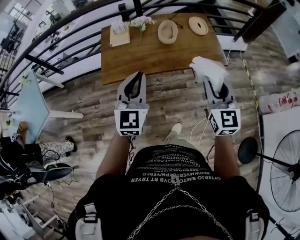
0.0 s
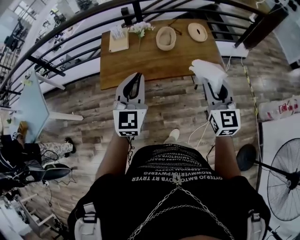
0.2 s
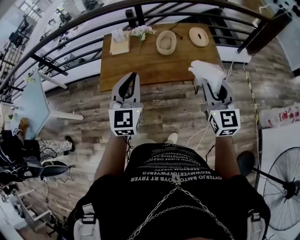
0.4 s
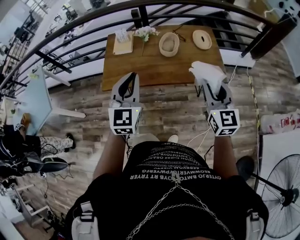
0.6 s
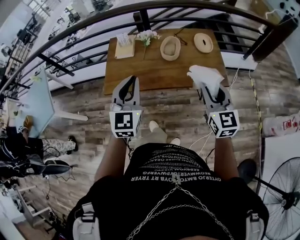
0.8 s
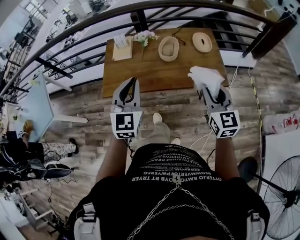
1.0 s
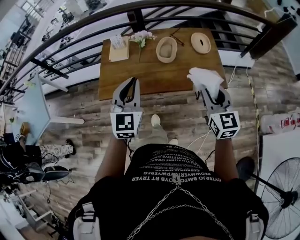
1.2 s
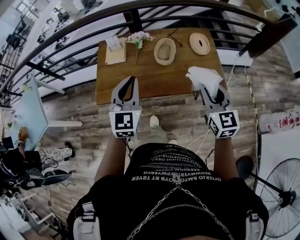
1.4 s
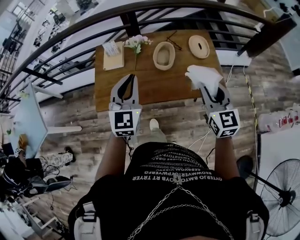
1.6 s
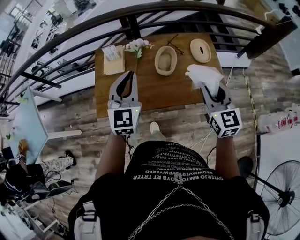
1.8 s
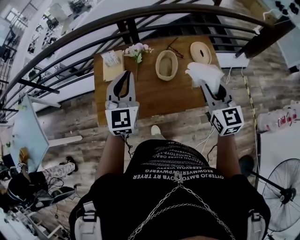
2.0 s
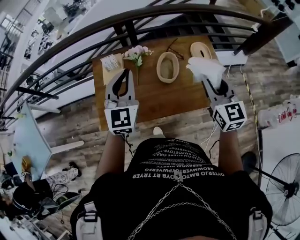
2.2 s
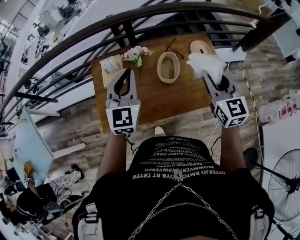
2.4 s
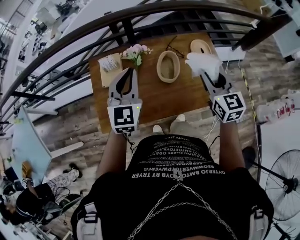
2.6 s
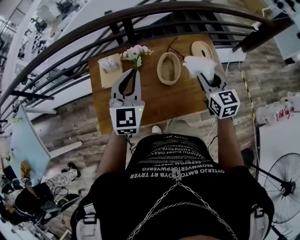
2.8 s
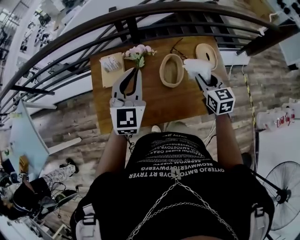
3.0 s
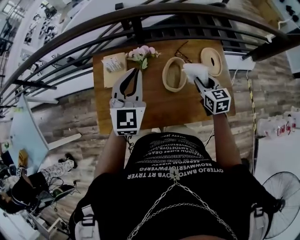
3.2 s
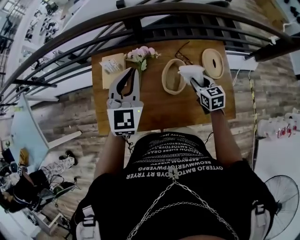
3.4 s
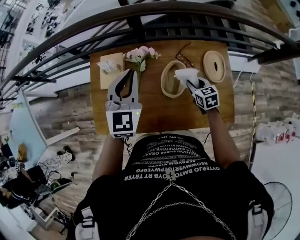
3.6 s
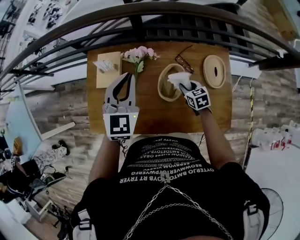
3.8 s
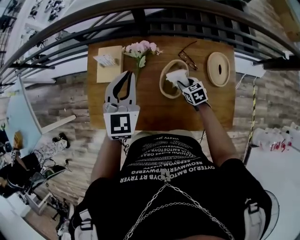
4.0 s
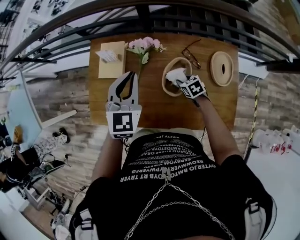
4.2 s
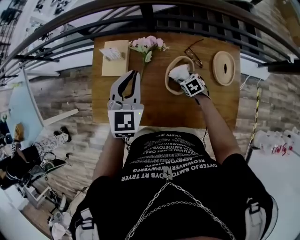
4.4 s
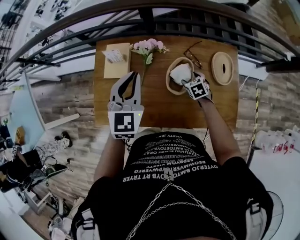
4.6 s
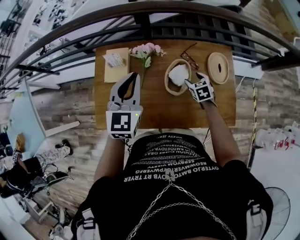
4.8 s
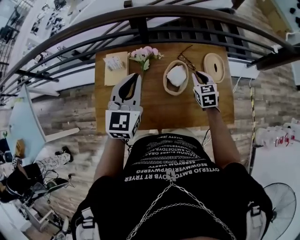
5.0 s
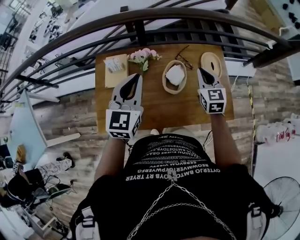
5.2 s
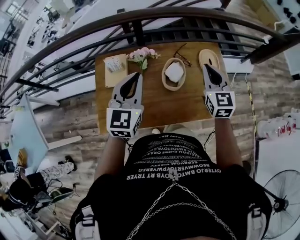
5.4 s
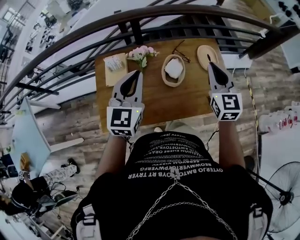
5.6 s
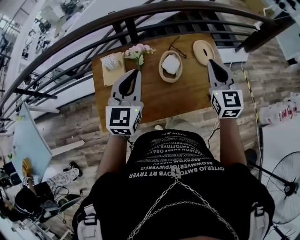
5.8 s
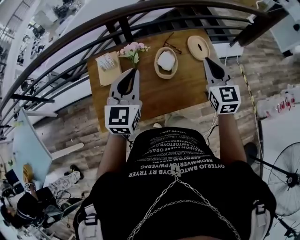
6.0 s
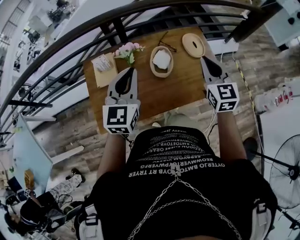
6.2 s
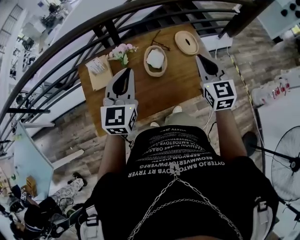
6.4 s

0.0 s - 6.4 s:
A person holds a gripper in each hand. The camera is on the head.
0.0 s - 1.6 s: Both grippers travel together forward, roughly 20 cm.
1.6 s - 3.2 s: The left gripper shifts some 20 cm forward. Meanwhile the right gripper moves forward and downward, about 30 cm, and changes its angle by approximately 20 degrees.
3.2 s - 4.8 s: The right gripper moves downward and forward, about 15 cm, changes its angle by about 20 degrees, and opens.
4.8 s - 6.4 s: The left gripper heads backward, covering approximately 10 cm, while the right gripper travels upward and backward by some 35 cm, tilts its fingers approximately 40 degrees upward, and closes.

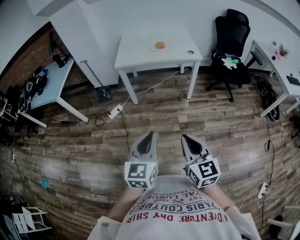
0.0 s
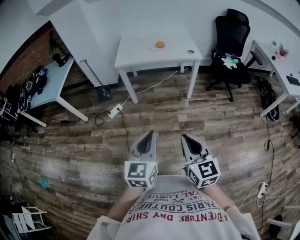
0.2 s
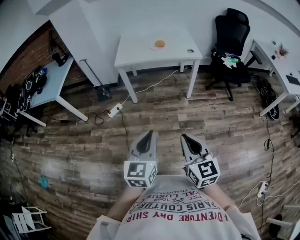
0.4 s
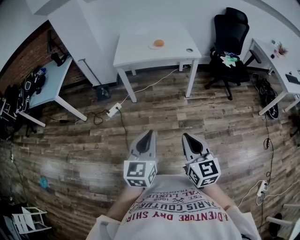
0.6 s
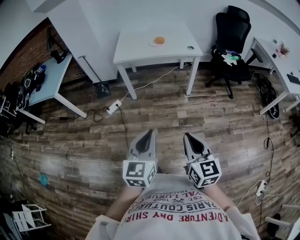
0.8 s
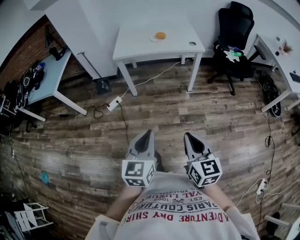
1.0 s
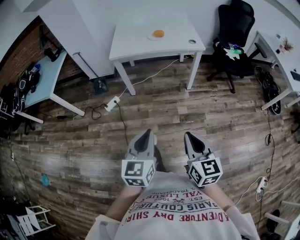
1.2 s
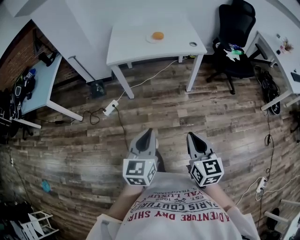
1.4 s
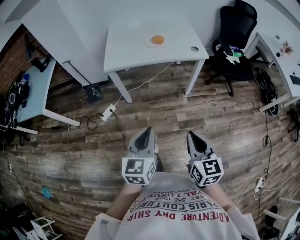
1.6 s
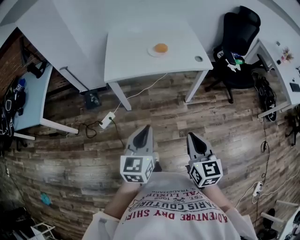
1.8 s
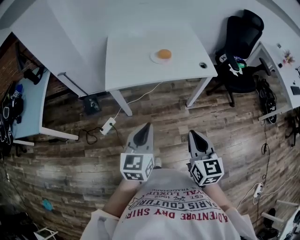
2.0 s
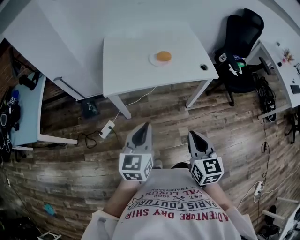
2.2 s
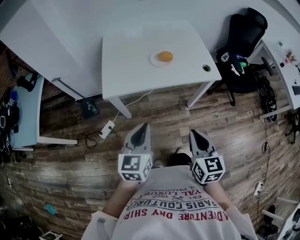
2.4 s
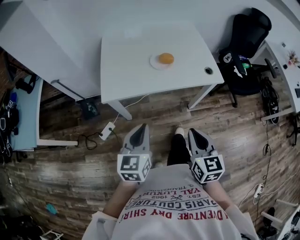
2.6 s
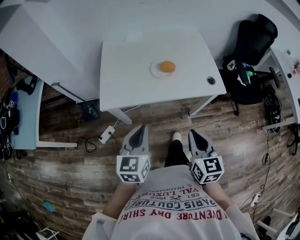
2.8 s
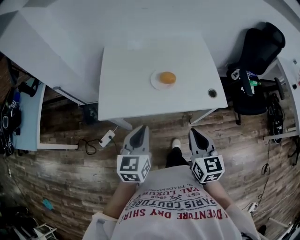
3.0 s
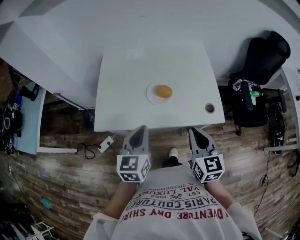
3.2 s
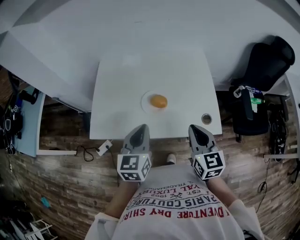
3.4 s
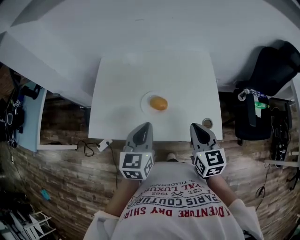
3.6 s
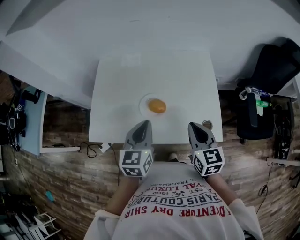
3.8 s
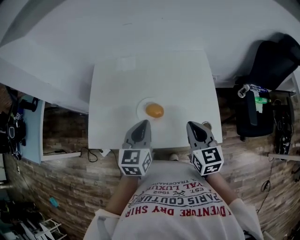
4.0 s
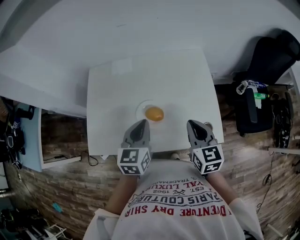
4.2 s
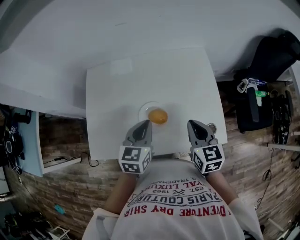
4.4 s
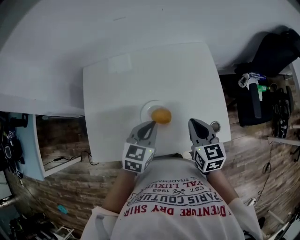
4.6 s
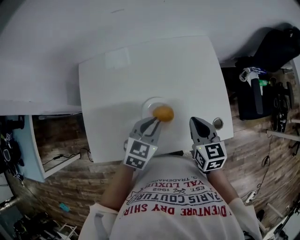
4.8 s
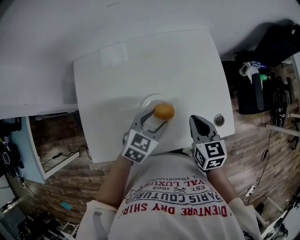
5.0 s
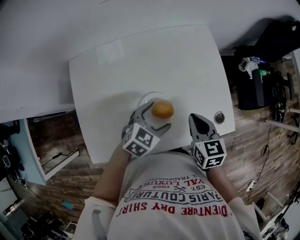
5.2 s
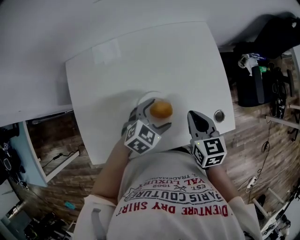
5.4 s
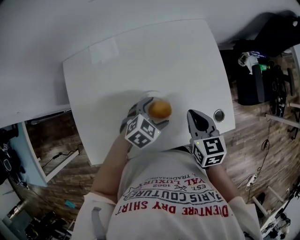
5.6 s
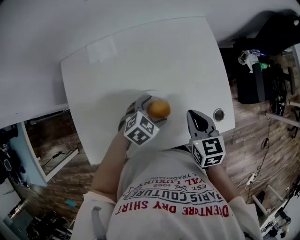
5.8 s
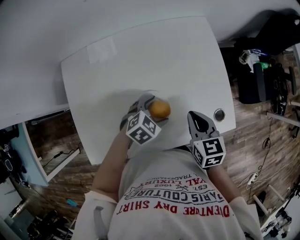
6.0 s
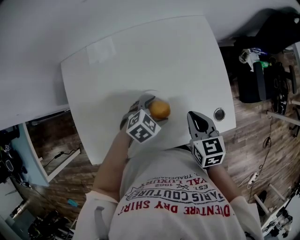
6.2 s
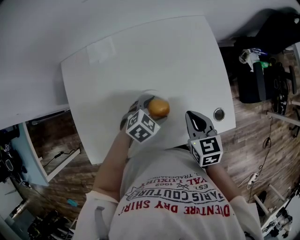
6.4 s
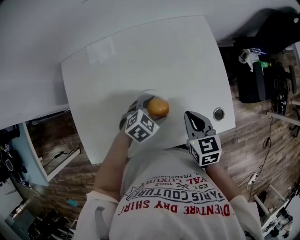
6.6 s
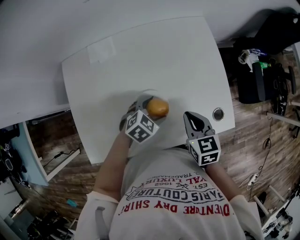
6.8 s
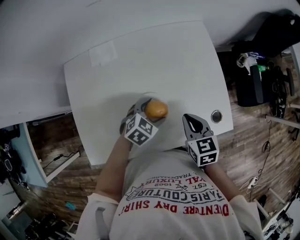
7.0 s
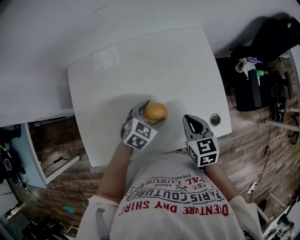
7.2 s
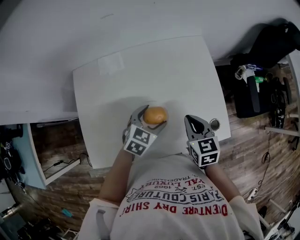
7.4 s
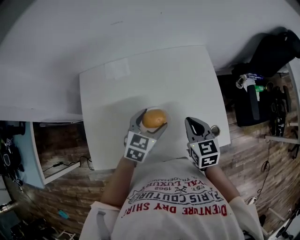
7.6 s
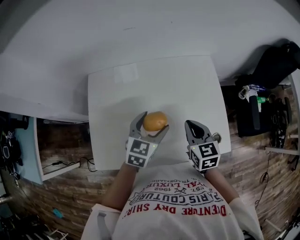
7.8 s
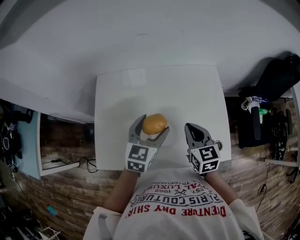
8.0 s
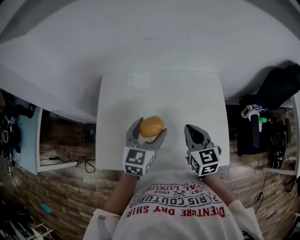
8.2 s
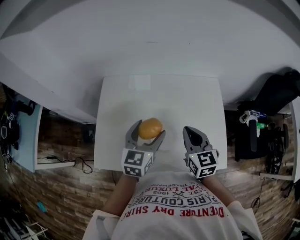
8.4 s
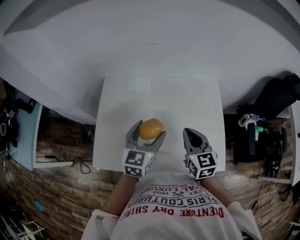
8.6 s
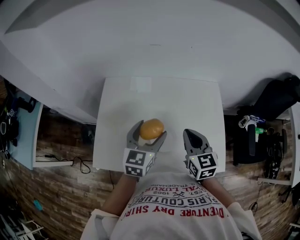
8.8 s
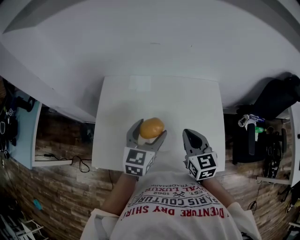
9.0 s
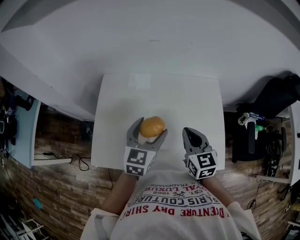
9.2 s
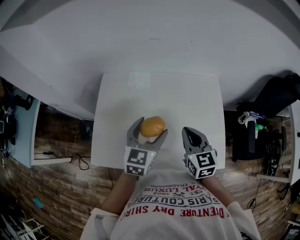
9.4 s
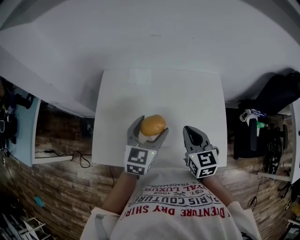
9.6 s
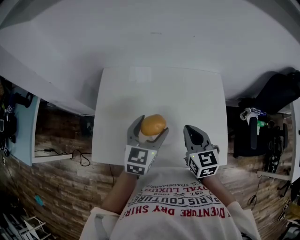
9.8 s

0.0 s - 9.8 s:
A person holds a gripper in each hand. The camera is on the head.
0.0 s - 1.4 s: Both grippers travel together forward, some 15 cm.
1.4 s - 2.8 s: Both grippers are carried forward, about 40 cm.
2.8 s - 4.2 s: The grippers both shift forward and to the right by some 35 cm.
4.2 s - 5.6 s: The right gripper heads downward, covering approximately 10 cm. The left gripper is displaced downward by approximately 15 cm, changes its angle by roughly 60 degrees, and opens up.
5.6 s - 7.0 s: There are only small adjustments of the grippers.
7.0 s - 8.4 s: The left gripper is displaced upward by about 20 cm, and points its fingers roughly 30 degrees further upward; the right gripper moves upward, approximately 15 cm, and turns by about 20 degrees.
8.4 s - 9.8 s: The grippers make only small movements.

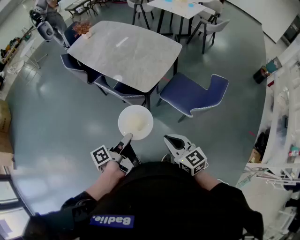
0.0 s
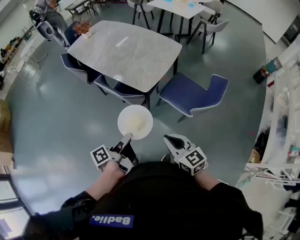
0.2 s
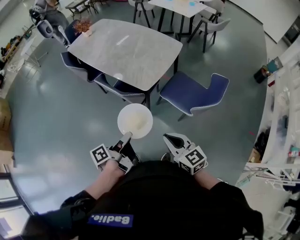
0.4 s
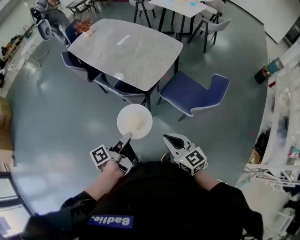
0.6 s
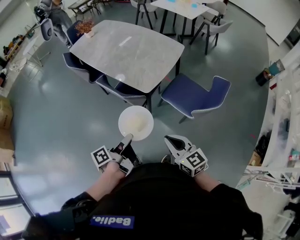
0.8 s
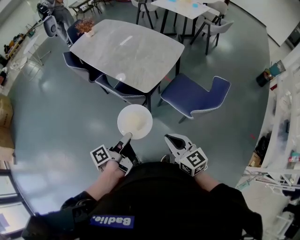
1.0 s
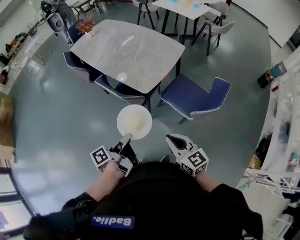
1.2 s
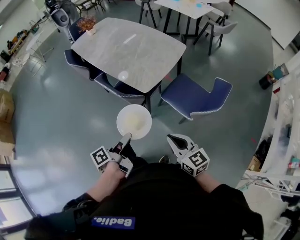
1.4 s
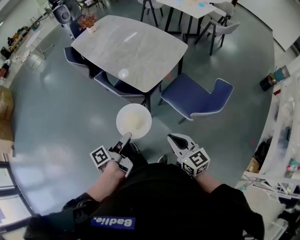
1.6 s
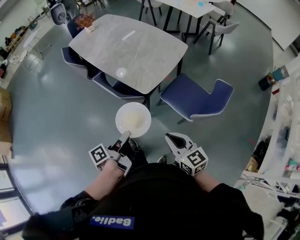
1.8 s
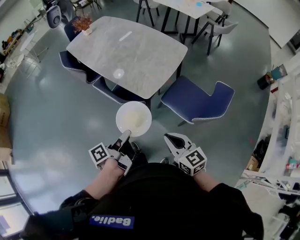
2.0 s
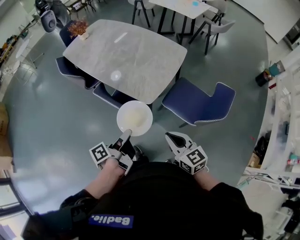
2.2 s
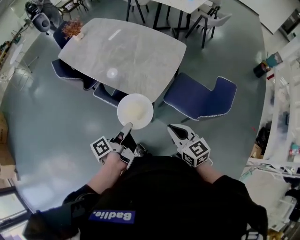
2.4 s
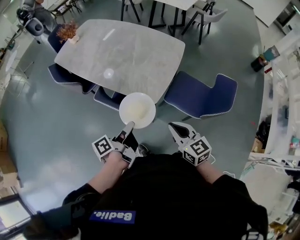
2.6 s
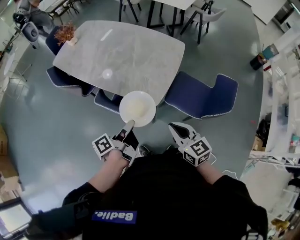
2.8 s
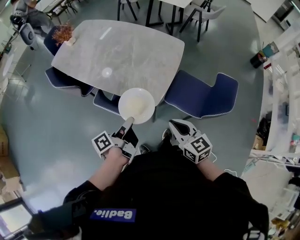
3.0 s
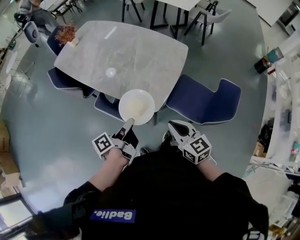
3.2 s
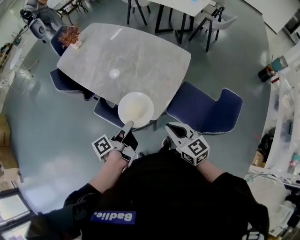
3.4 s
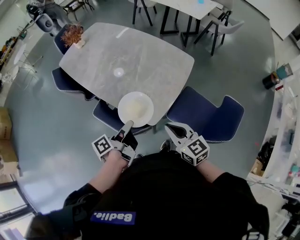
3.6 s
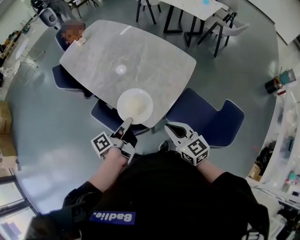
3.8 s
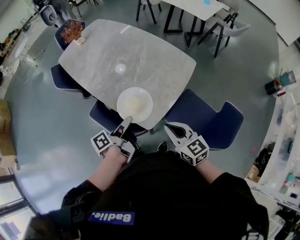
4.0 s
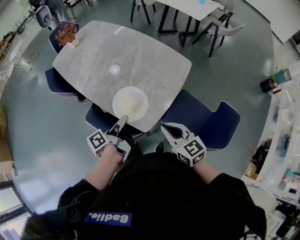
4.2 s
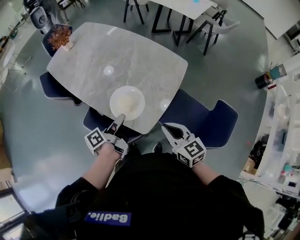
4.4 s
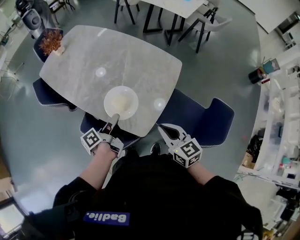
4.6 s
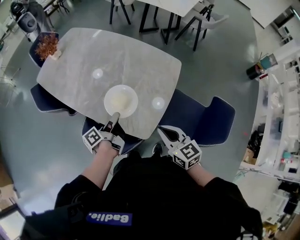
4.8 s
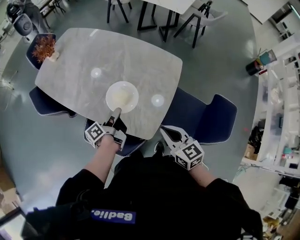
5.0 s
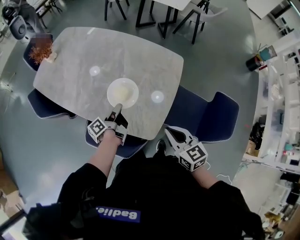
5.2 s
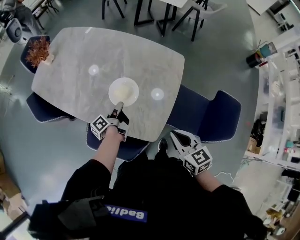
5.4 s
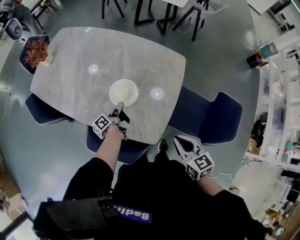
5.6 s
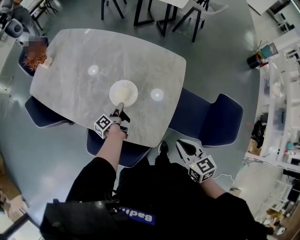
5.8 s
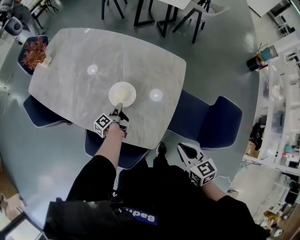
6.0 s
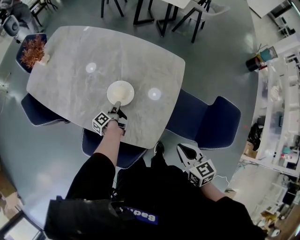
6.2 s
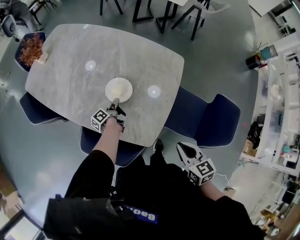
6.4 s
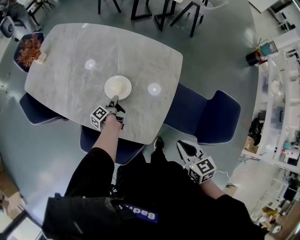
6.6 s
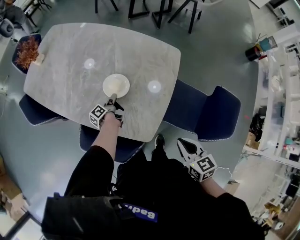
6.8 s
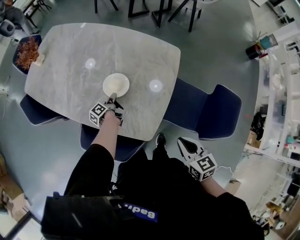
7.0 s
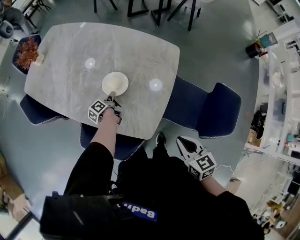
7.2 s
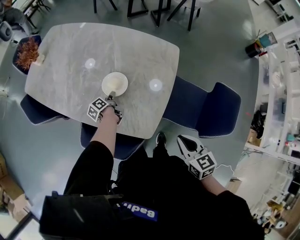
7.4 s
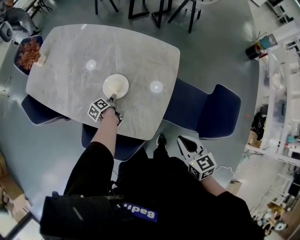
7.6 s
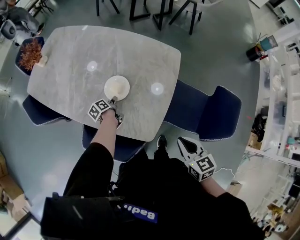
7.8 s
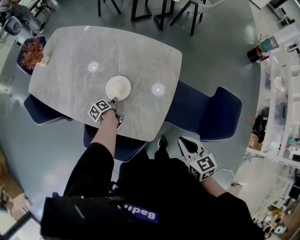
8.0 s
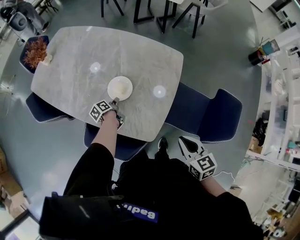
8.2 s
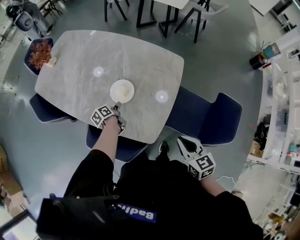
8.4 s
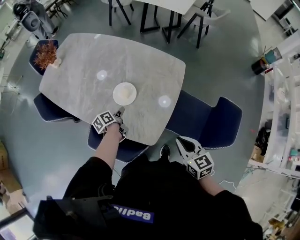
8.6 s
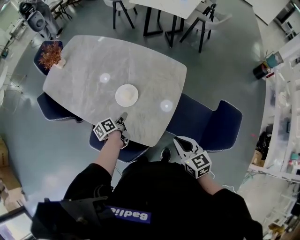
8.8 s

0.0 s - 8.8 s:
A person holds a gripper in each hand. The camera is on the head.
0.0 s - 1.4 s: The right gripper moves approximately 5 cm.
1.4 s - 3.0 s: The right gripper shifts by roughly 25 cm.
3.0 s - 4.4 s: The right gripper moves some 15 cm.
4.4 s - 5.8 s: The right gripper heads downward, covering approximately 5 cm, and swivels about 20 degrees.
